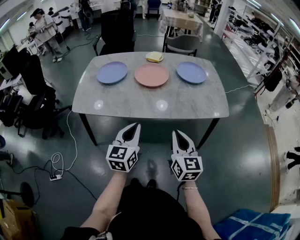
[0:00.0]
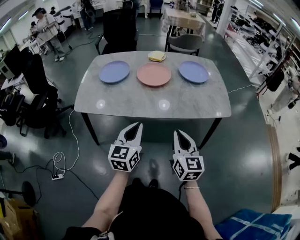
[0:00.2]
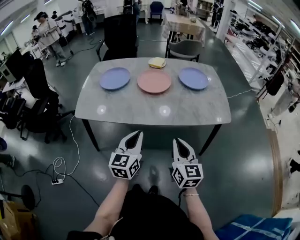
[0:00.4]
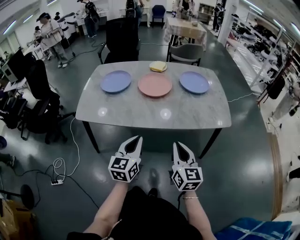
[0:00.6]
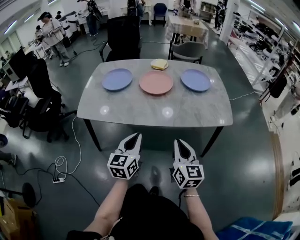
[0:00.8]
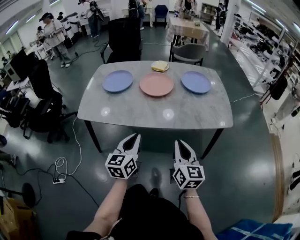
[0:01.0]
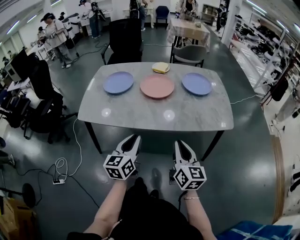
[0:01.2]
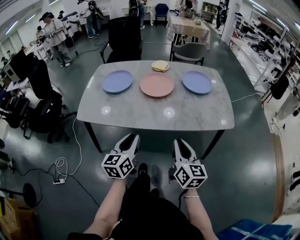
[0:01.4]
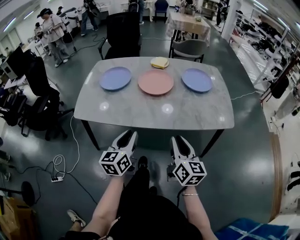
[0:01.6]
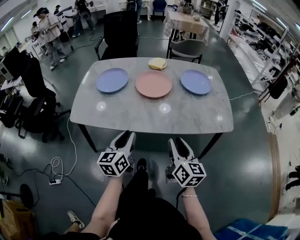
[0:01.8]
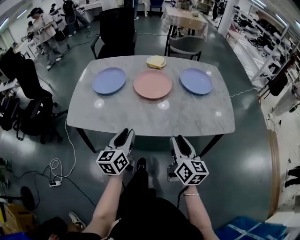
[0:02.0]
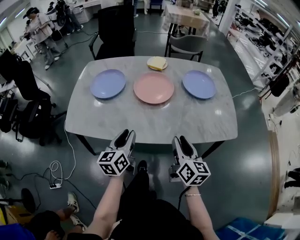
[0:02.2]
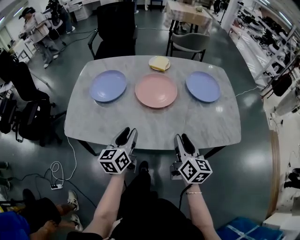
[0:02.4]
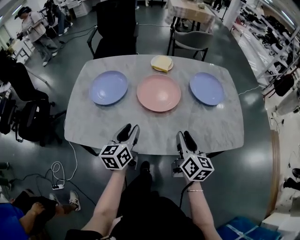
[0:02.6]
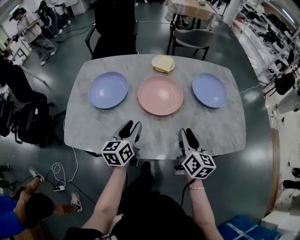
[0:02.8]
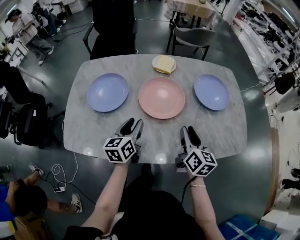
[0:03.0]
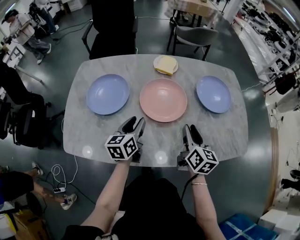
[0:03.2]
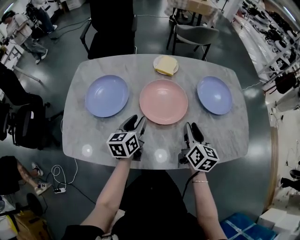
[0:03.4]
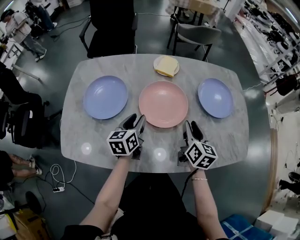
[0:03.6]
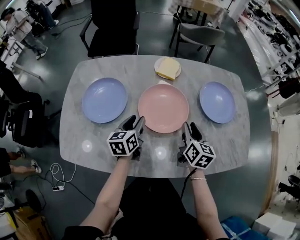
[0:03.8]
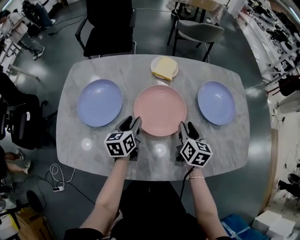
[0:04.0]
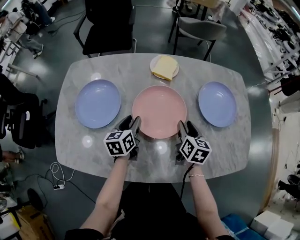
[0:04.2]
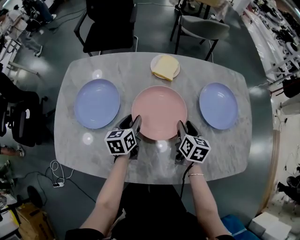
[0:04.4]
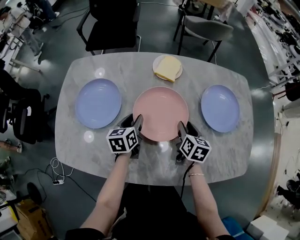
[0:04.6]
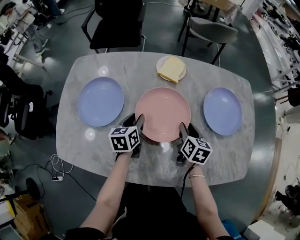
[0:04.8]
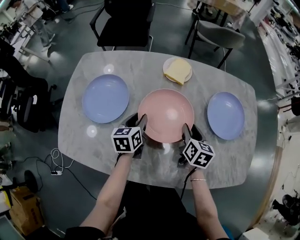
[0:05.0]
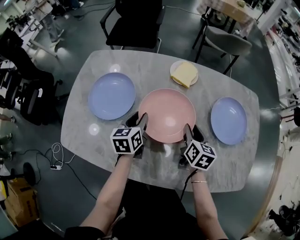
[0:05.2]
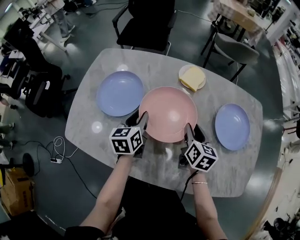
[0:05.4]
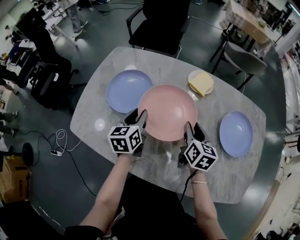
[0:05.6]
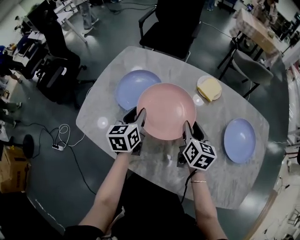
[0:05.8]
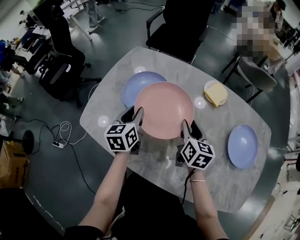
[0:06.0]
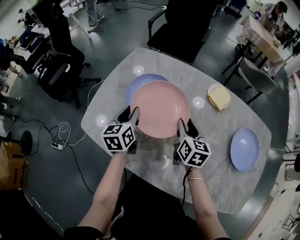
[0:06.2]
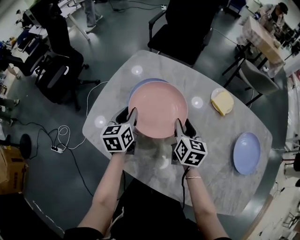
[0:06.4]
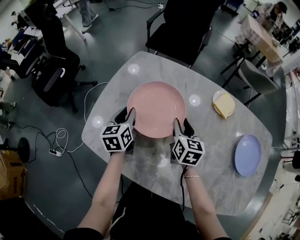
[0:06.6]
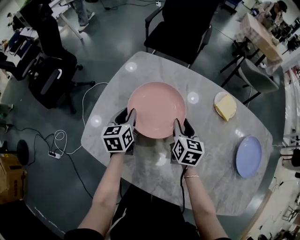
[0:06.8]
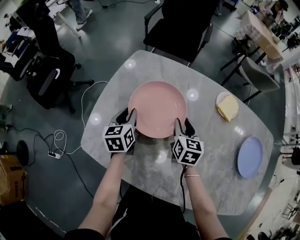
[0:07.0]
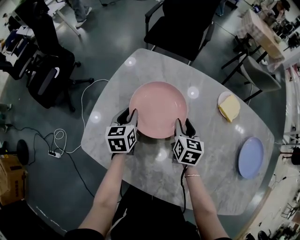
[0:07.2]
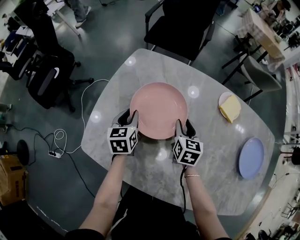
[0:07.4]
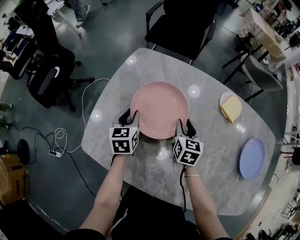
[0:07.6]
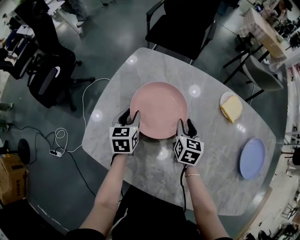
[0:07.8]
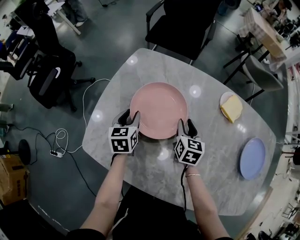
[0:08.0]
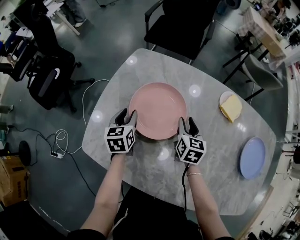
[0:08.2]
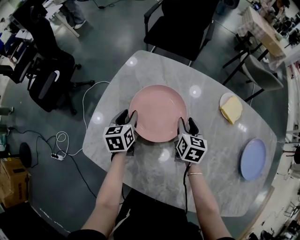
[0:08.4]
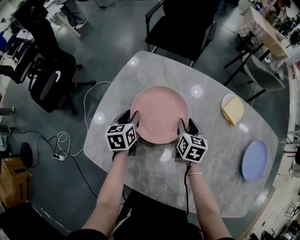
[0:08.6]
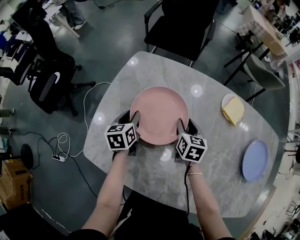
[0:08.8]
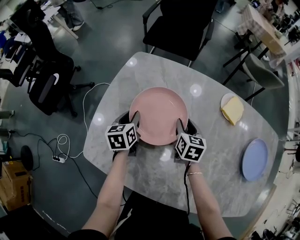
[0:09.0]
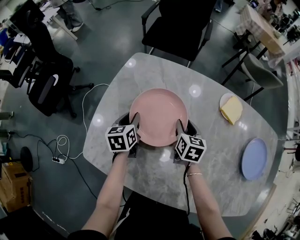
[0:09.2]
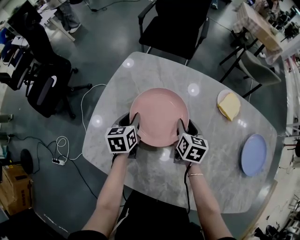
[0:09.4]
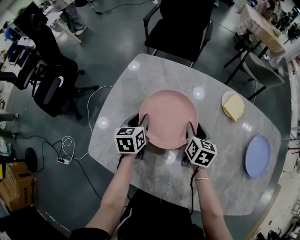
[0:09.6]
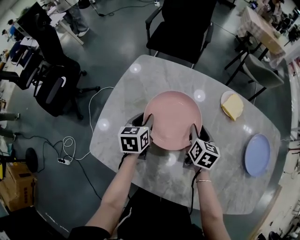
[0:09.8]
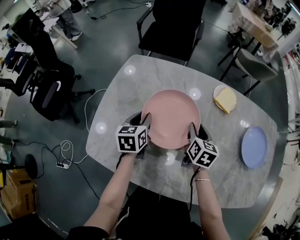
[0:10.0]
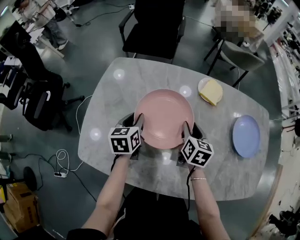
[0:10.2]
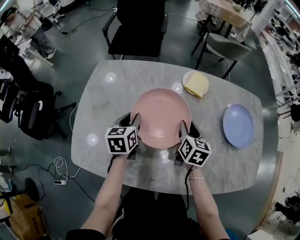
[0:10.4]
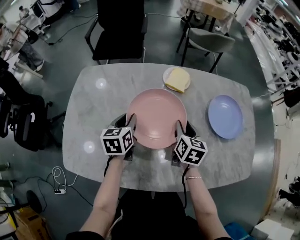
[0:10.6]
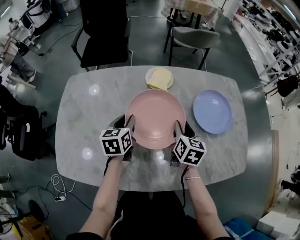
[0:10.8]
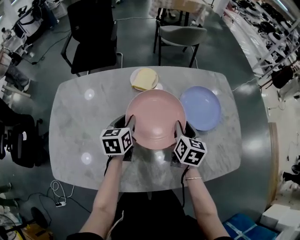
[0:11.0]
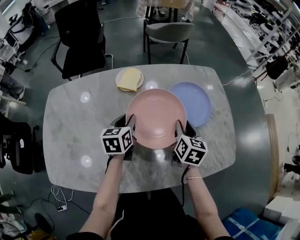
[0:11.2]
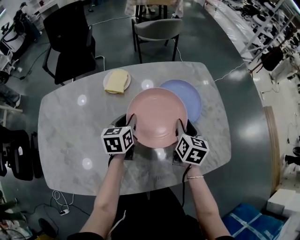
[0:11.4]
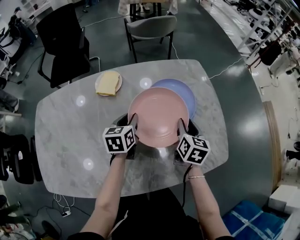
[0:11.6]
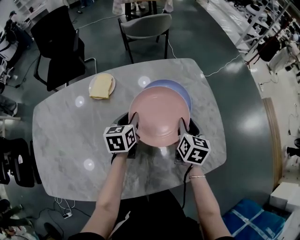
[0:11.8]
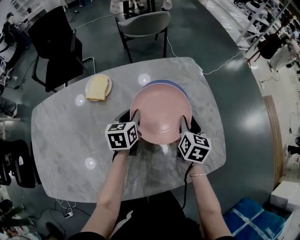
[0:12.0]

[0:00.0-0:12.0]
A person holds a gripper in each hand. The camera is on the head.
0:00.0 to 0:01.6: The right gripper shifts by approximately 5 cm, while the left gripper ends up roughly 5 cm from where it was.
0:01.6 to 0:03.0: The two grippers go about 25 cm forward.
0:03.0 to 0:04.4: Both grippers move forward and downward, roughly 15 cm. The right gripper changes its angle by about 20 degrees.
0:04.4 to 0:06.0: The left gripper shifts by roughly 20 cm, and rotates about 30 degrees; the right gripper moves about 20 cm, and turns by some 30 degrees.
0:06.0 to 0:07.6: The two grippers go roughly 15 cm forward, to the left and downward.
0:07.6 to 0:09.0: There are only small adjustments of the grippers.
0:09.0 to 0:10.4: The left gripper goes some 15 cm to the right. The right gripper is displaced to the right and backward by approximately 20 cm, and changes its angle by some 20 degrees.
0:10.4 to 0:12.0: The pair of grippers is taken to the right, some 40 cm. The left gripper changes its angle by roughly 20 degrees; the right gripper changes its angle by some 20 degrees.

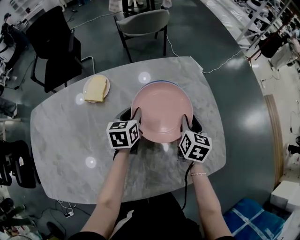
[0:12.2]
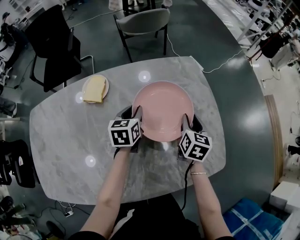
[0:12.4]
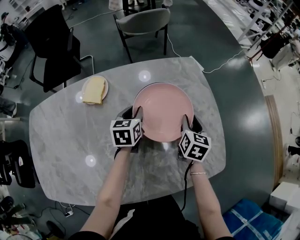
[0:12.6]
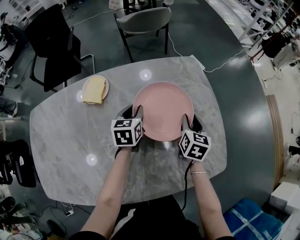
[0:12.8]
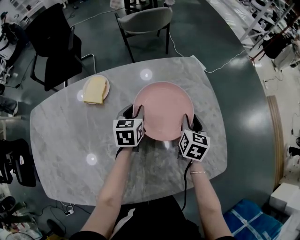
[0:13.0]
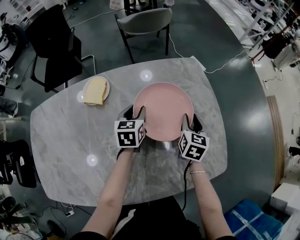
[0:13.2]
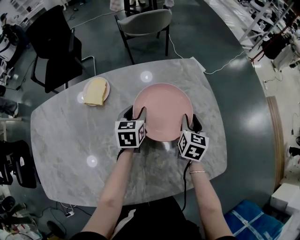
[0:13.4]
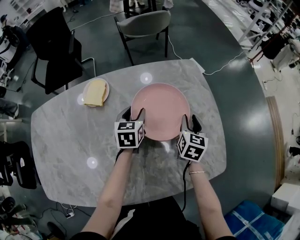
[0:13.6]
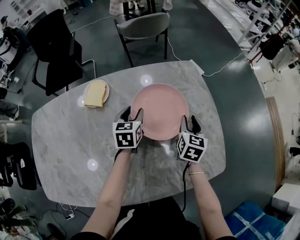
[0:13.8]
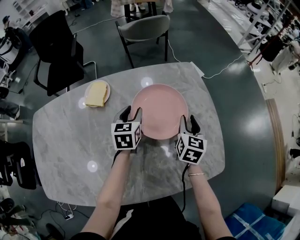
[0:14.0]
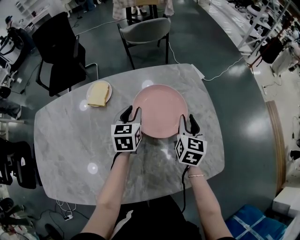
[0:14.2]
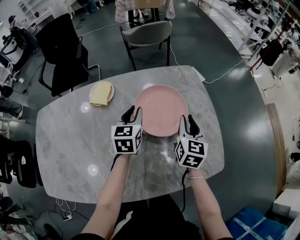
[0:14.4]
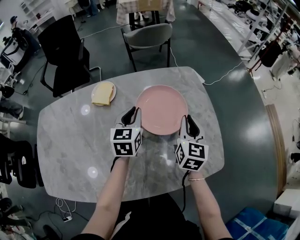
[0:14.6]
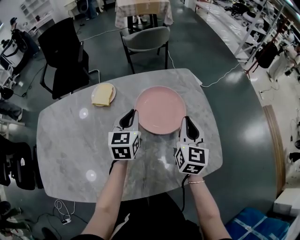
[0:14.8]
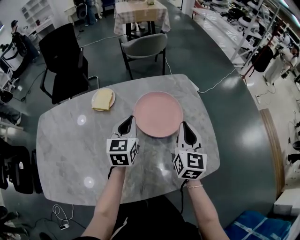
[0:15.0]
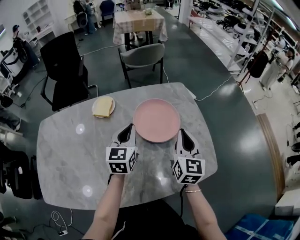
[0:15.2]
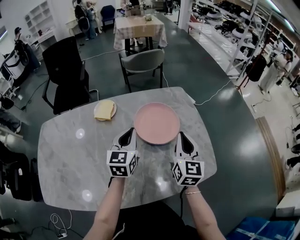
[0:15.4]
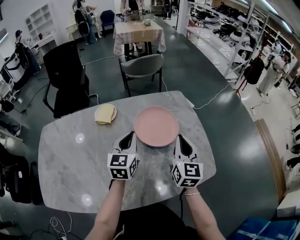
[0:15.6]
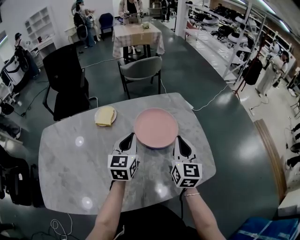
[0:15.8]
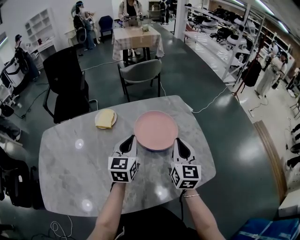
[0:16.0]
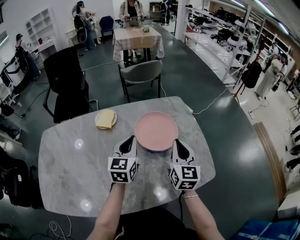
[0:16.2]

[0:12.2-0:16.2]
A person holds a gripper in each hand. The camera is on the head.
0:12.2 to 0:13.6: The grippers move only a little.
0:13.6 to 0:14.8: The grippers both shift upward and backward by roughly 15 cm. The left gripper closes up; the right gripper rotates approximately 20 degrees, and closes.
0:14.8 to 0:16.2: Both grippers travel together backward, approximately 5 cm.

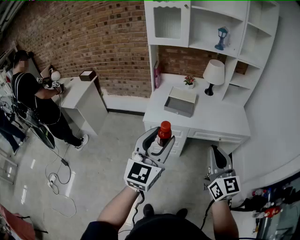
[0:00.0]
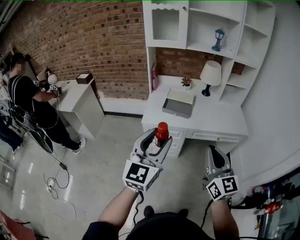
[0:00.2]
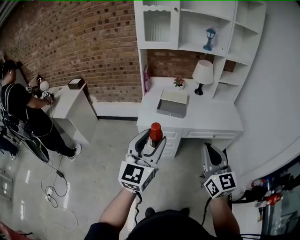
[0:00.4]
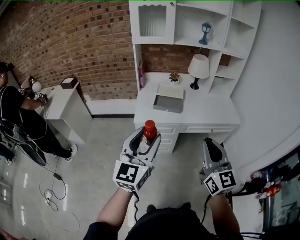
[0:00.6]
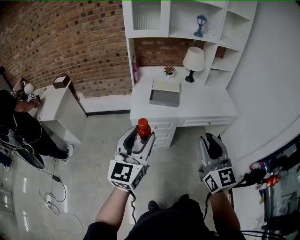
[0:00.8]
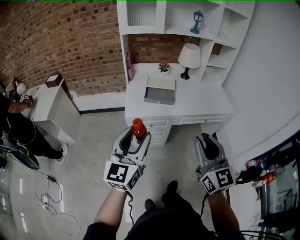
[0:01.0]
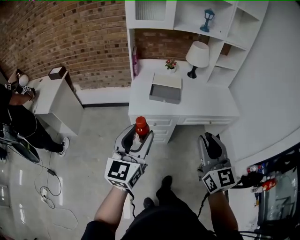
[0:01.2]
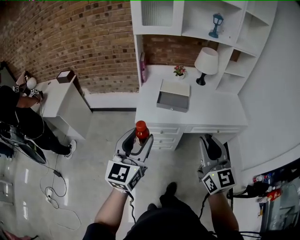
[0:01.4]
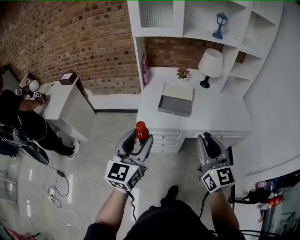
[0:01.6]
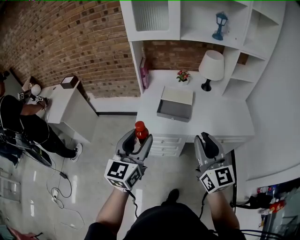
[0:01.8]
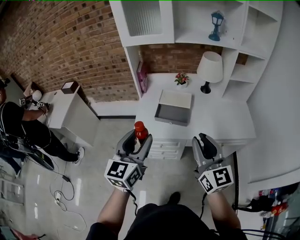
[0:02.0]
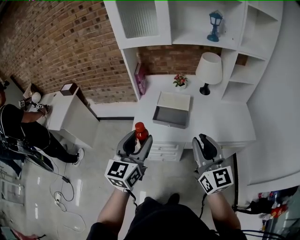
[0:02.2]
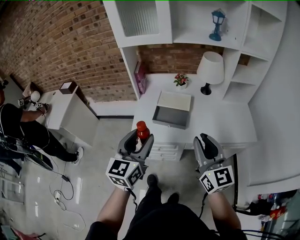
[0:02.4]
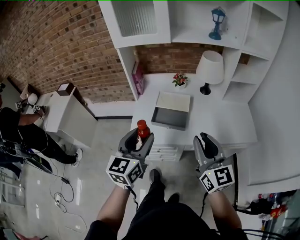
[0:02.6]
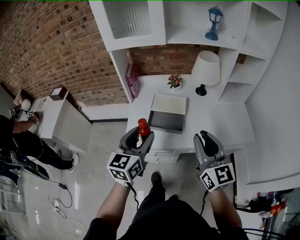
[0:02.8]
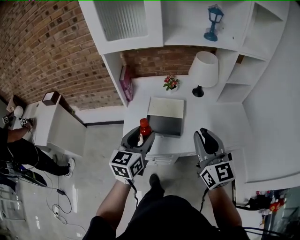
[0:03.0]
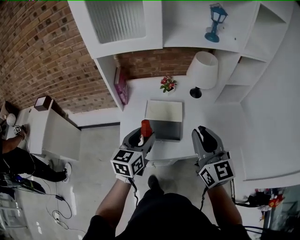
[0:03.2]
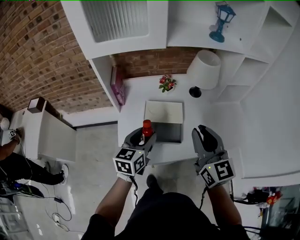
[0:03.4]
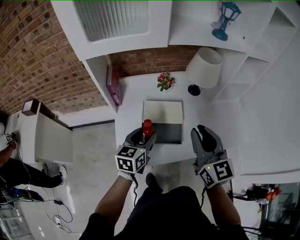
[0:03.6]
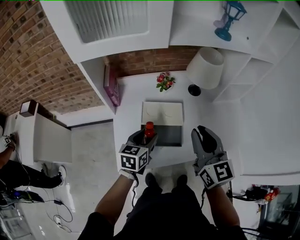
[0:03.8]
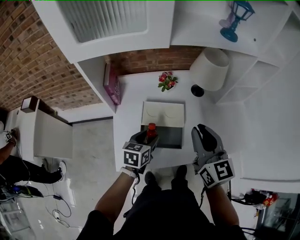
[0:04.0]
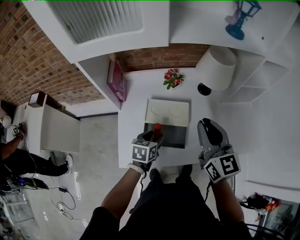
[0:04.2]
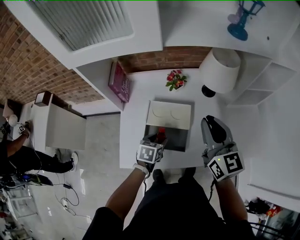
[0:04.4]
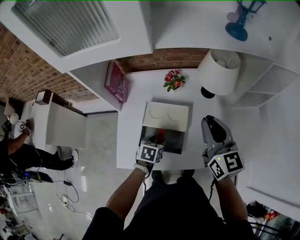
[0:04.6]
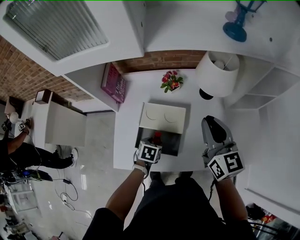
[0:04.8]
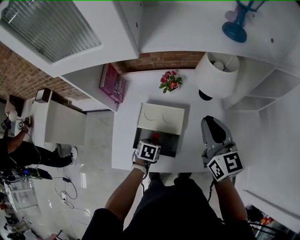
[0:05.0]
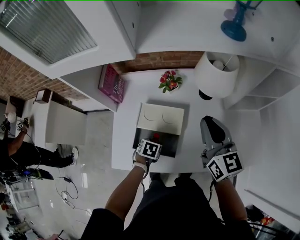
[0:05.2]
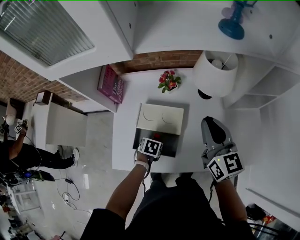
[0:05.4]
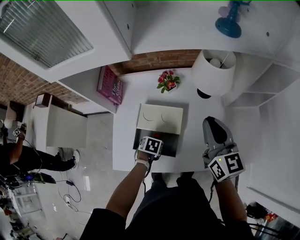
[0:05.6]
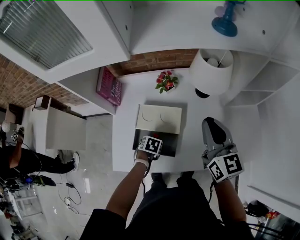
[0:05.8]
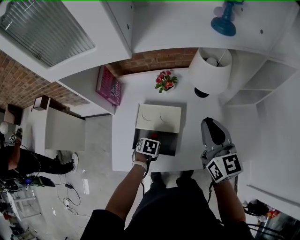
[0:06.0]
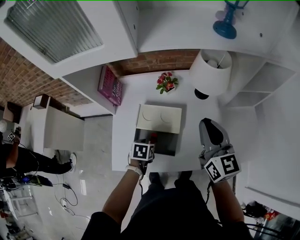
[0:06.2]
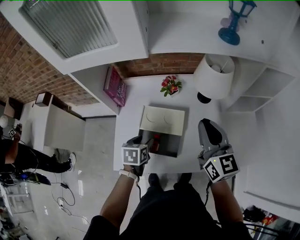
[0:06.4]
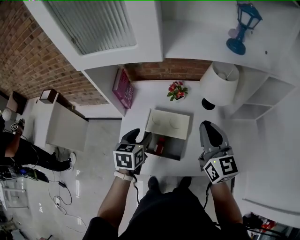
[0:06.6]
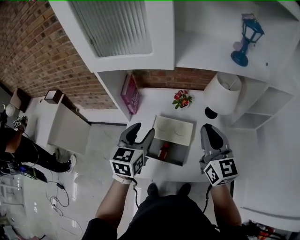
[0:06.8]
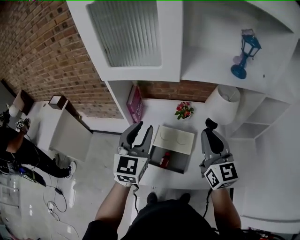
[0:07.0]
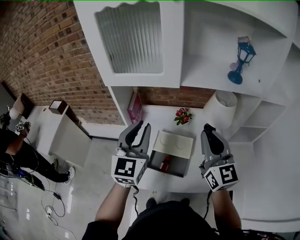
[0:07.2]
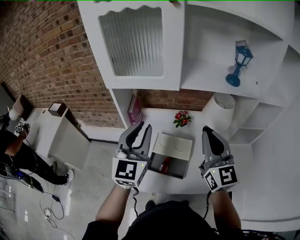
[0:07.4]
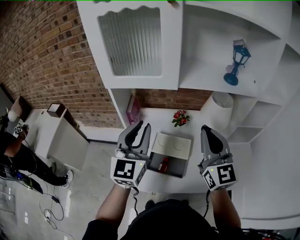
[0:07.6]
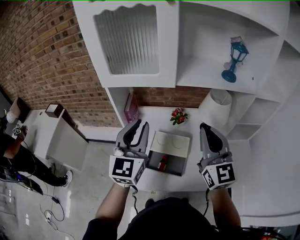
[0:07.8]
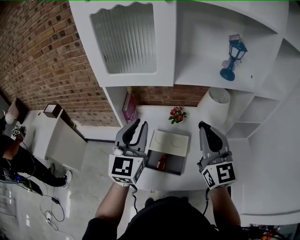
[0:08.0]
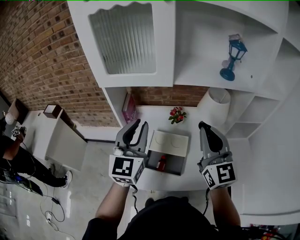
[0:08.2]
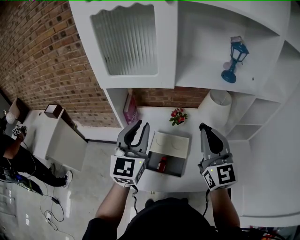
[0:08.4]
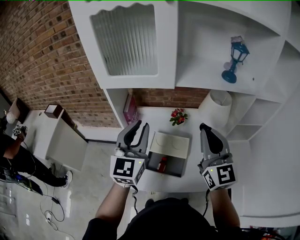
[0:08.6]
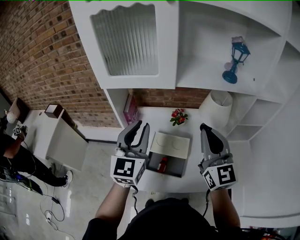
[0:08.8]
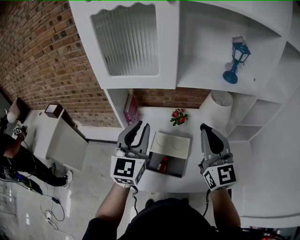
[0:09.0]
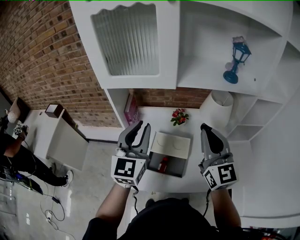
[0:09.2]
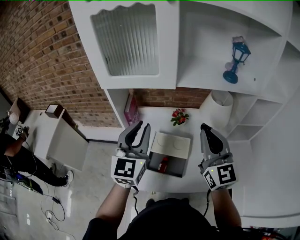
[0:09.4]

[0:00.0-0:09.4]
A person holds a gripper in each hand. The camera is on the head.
0:00.0 to 0:01.6: The left gripper moves forward, to the left and downward, some 20 cm; the right gripper is displaced forward and to the left by approximately 15 cm, and opens its fingers.
0:01.6 to 0:03.2: Both grippers move forward, approximately 30 cm. The left gripper turns by approximately 20 degrees.
0:03.2 to 0:04.8: The left gripper shifts roughly 30 cm downward and forward, and tilts its fingers some 50 degrees downward. The right gripper moves forward, some 25 cm.
0:04.8 to 0:06.2: There are only small adjustments of the grippers.
0:06.2 to 0:07.8: The left gripper shifts approximately 40 cm upward, tips its fingers upward by some 70 degrees, and closes up. Meanwhile the right gripper goes about 20 cm upward and to the left, and turns by about 20 degrees.
0:07.8 to 0:09.4: The grippers move only a little.
